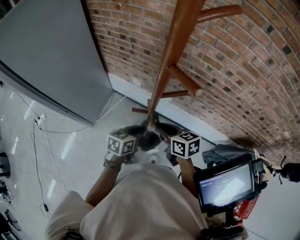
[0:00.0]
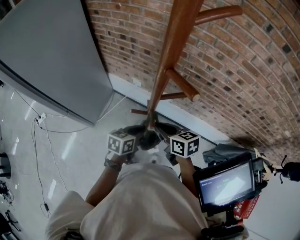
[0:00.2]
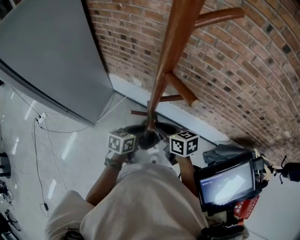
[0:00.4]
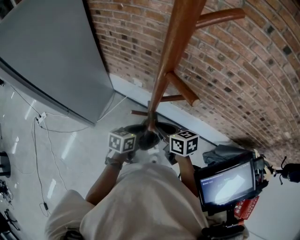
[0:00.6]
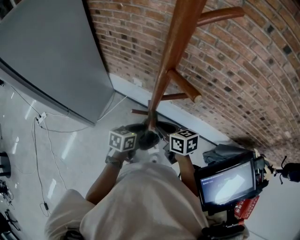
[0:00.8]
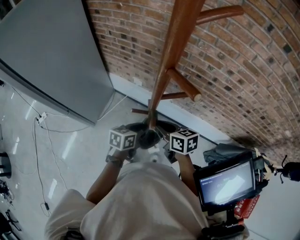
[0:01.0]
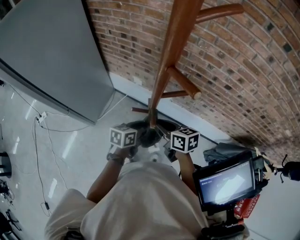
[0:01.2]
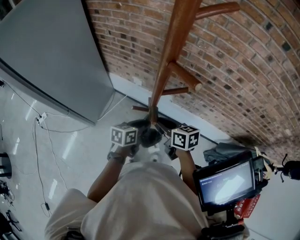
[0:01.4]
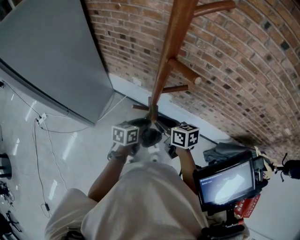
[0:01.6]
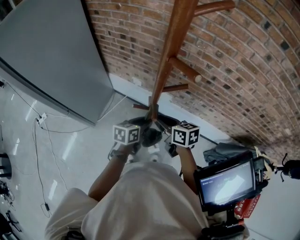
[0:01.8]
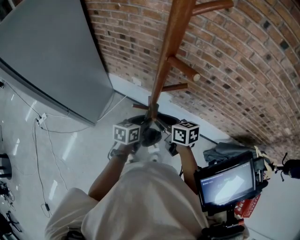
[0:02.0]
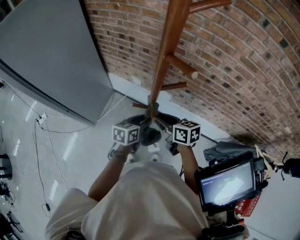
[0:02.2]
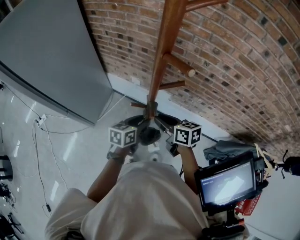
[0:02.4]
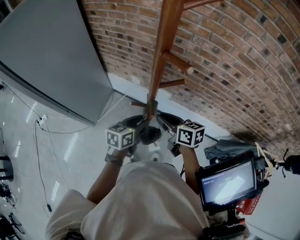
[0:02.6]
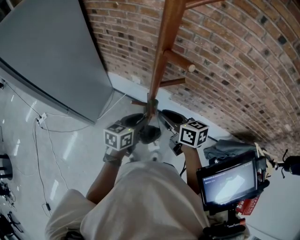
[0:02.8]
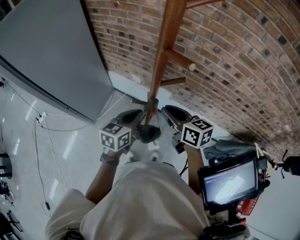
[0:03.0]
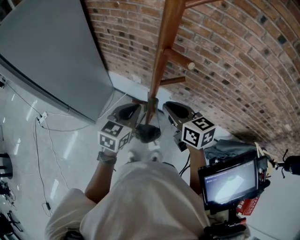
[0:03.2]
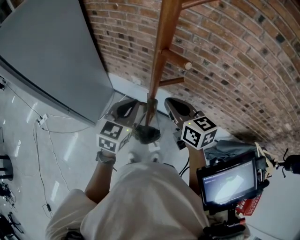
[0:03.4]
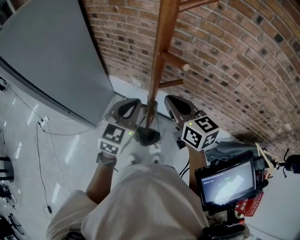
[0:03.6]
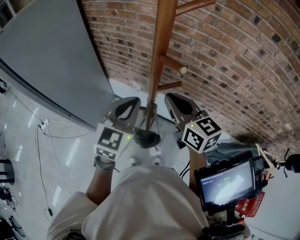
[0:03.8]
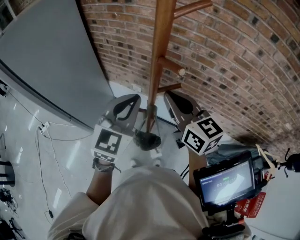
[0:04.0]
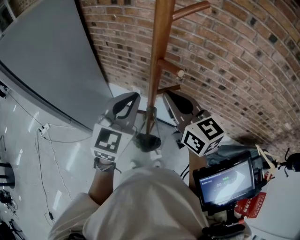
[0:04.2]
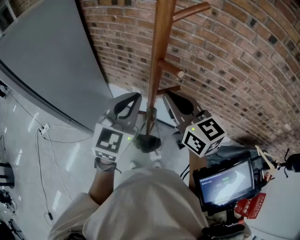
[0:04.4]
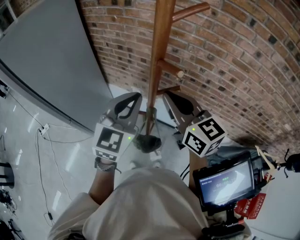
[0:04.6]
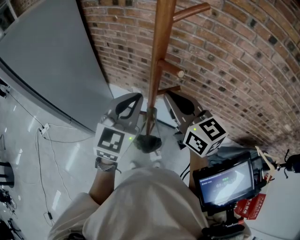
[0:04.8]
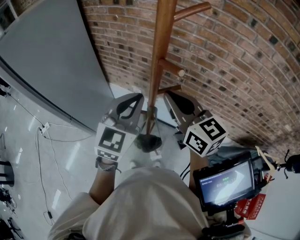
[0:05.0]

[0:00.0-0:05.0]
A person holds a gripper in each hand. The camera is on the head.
0:00.0 to 0:01.6: There are only small adjustments of the grippers.
0:01.6 to 0:03.4: The two grippers go roughly 15 cm upward. The right gripper rotates approximately 20 degrees, while the left gripper changes its angle by roughly 40 degrees.
0:03.4 to 0:05.0: Both grippers move upward, approximately 10 cm.

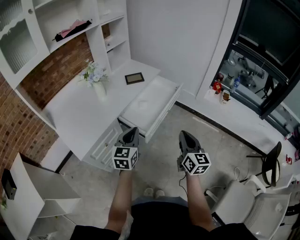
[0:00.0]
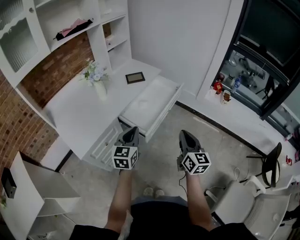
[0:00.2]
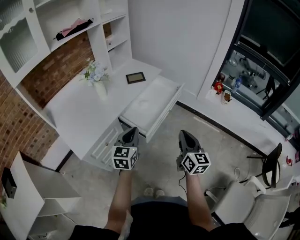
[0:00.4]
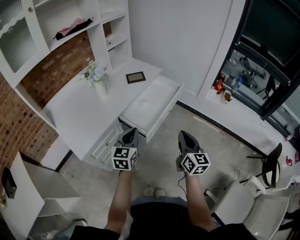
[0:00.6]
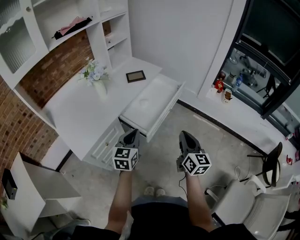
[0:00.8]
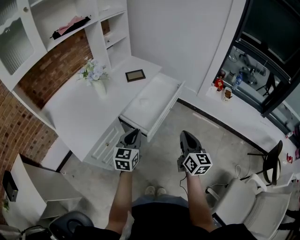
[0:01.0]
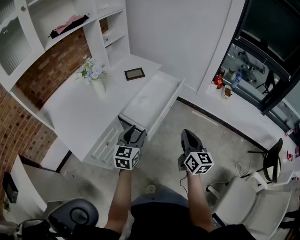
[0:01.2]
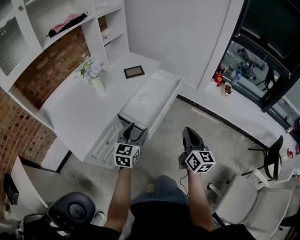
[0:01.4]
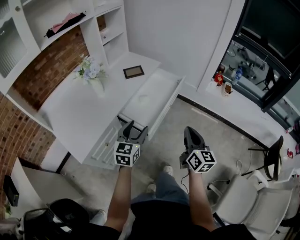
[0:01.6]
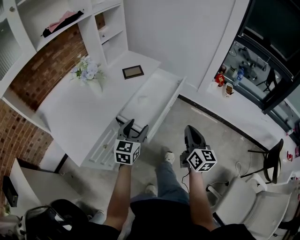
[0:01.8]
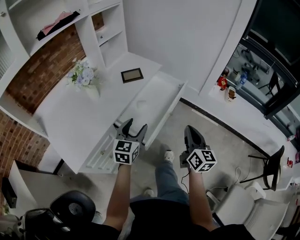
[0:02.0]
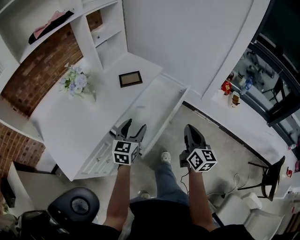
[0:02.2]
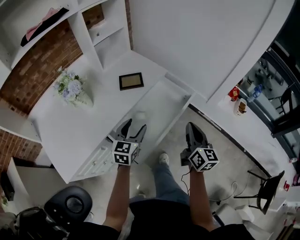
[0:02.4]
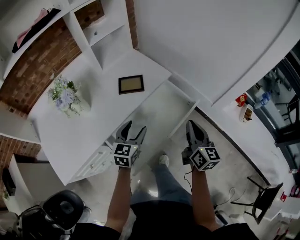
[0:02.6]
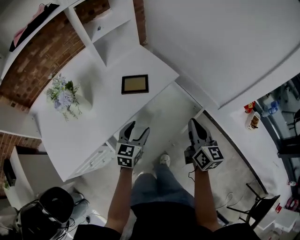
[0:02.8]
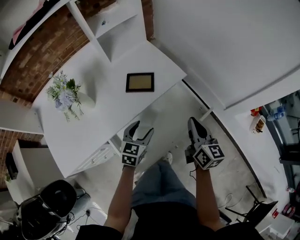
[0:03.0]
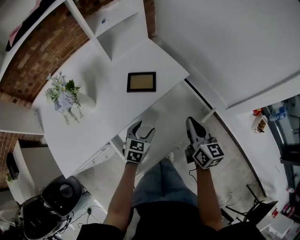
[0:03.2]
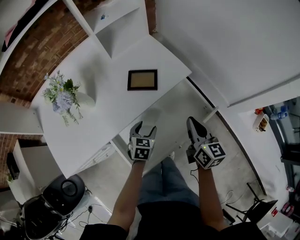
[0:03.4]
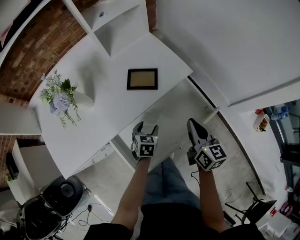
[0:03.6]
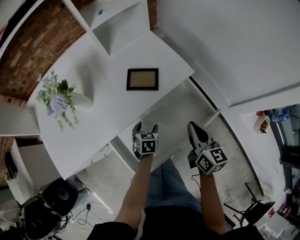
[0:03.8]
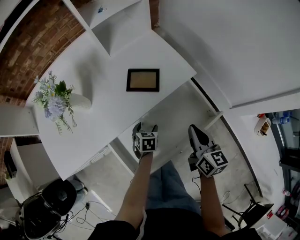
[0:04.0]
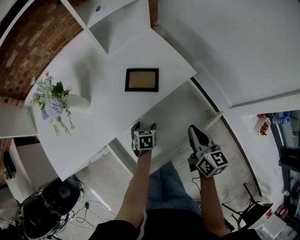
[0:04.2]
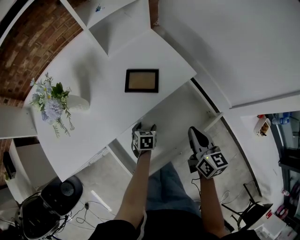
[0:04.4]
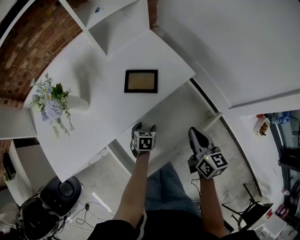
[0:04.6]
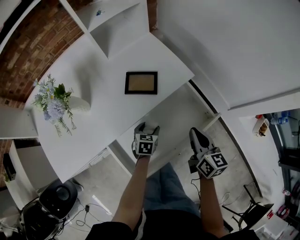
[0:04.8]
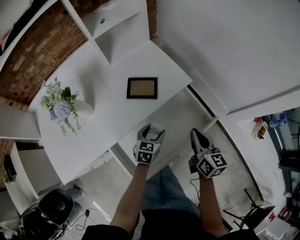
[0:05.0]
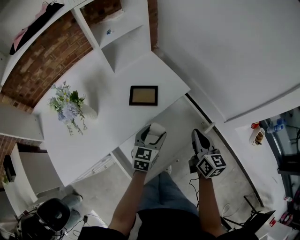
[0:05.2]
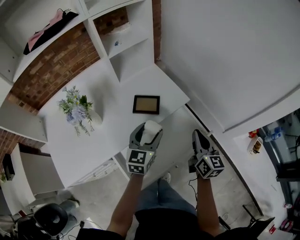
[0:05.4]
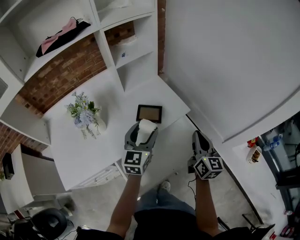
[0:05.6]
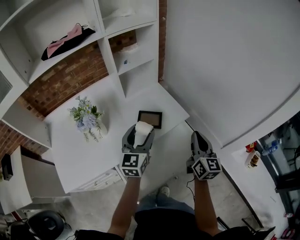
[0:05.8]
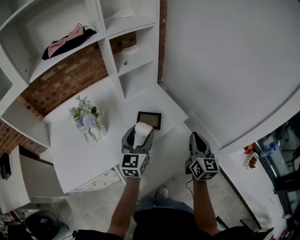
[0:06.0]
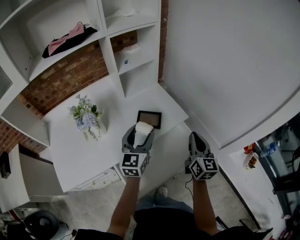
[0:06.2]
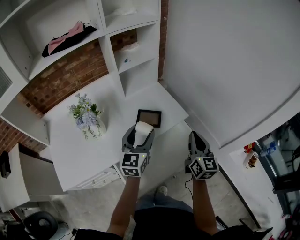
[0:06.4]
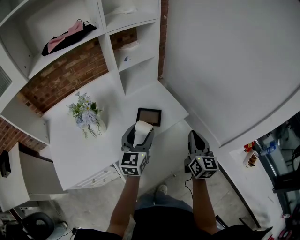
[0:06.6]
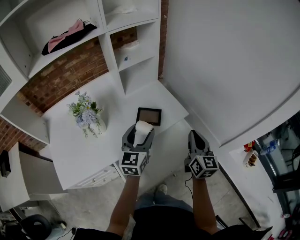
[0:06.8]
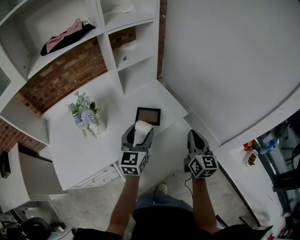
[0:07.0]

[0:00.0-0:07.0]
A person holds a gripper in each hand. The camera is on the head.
0:00.0 to 0:01.4: The left gripper opens.
0:01.4 to 0:02.8: Both grippers move forward, approximately 40 cm. The right gripper turns by roughly 20 degrees. Meanwhile the left gripper changes its angle by some 20 degrees.
0:02.8 to 0:04.2: The left gripper travels downward by some 20 cm, and points its fingers approximately 30 degrees further downward, while the right gripper shifts about 10 cm downward and forward.
0:04.2 to 0:05.6: The left gripper shifts some 35 cm upward, and tips its fingers upward by roughly 50 degrees, while the right gripper goes approximately 15 cm upward, and changes its angle by some 20 degrees.
0:05.6 to 0:07.0: There are only small adjustments of the grippers.

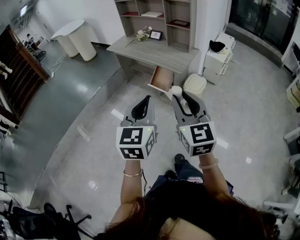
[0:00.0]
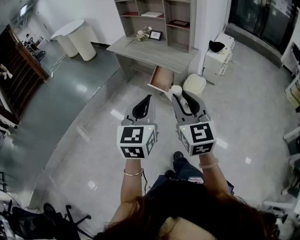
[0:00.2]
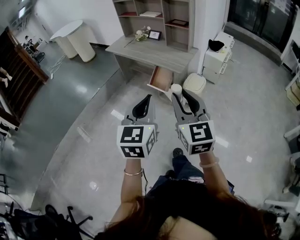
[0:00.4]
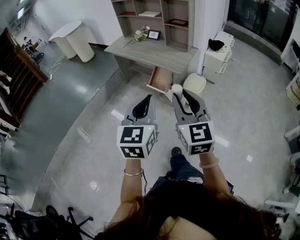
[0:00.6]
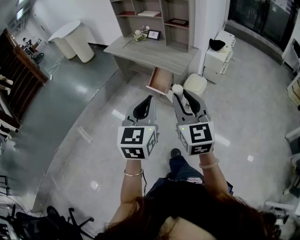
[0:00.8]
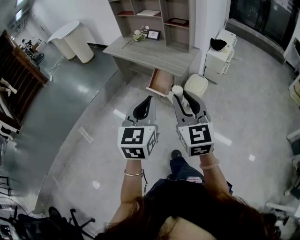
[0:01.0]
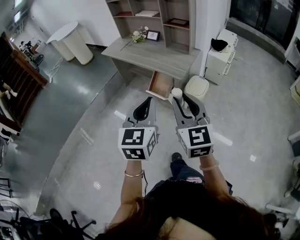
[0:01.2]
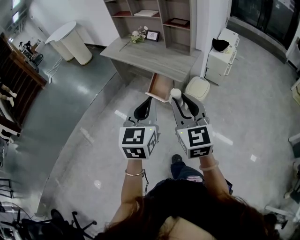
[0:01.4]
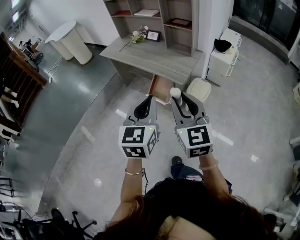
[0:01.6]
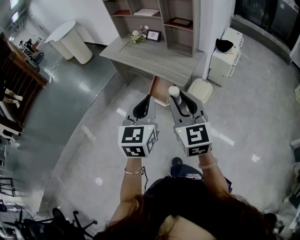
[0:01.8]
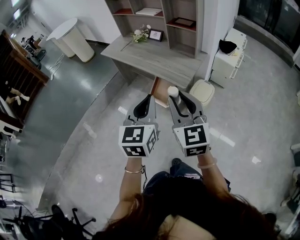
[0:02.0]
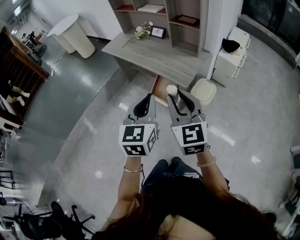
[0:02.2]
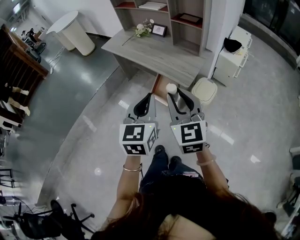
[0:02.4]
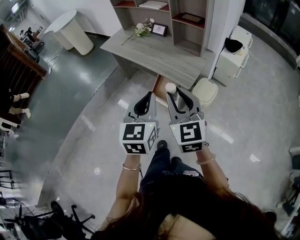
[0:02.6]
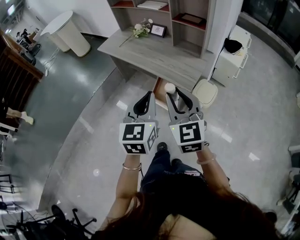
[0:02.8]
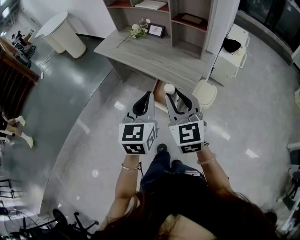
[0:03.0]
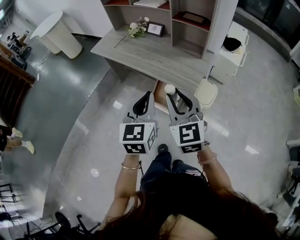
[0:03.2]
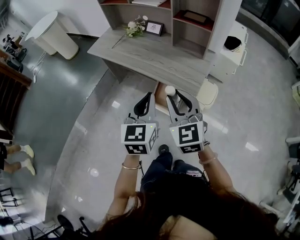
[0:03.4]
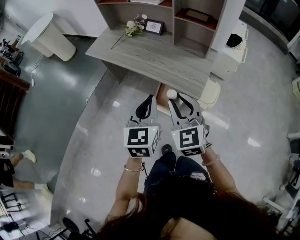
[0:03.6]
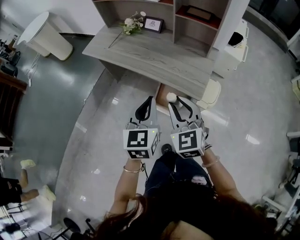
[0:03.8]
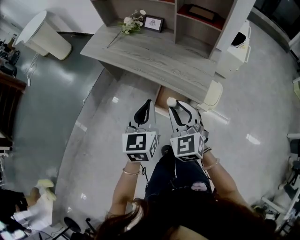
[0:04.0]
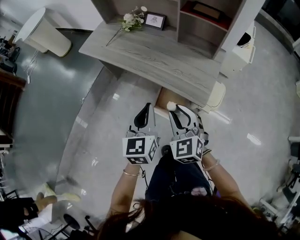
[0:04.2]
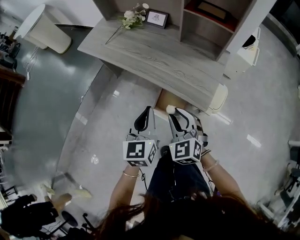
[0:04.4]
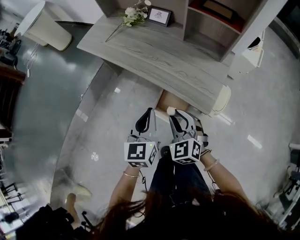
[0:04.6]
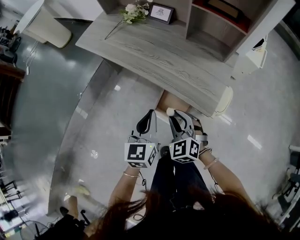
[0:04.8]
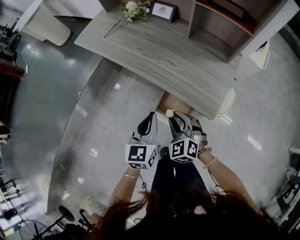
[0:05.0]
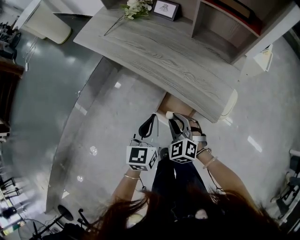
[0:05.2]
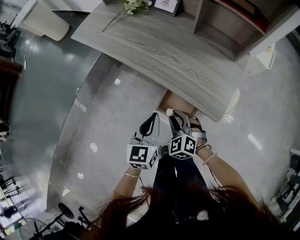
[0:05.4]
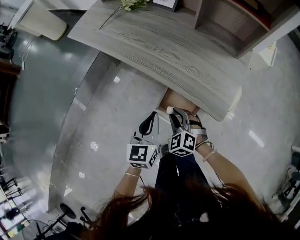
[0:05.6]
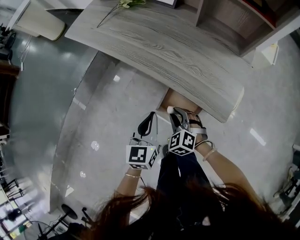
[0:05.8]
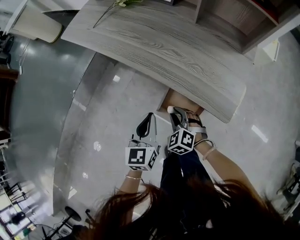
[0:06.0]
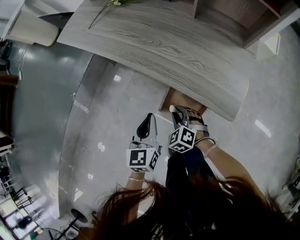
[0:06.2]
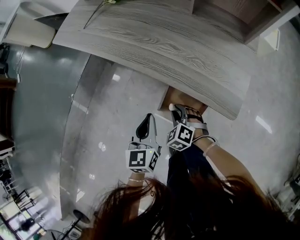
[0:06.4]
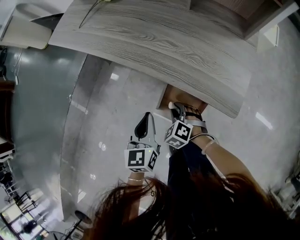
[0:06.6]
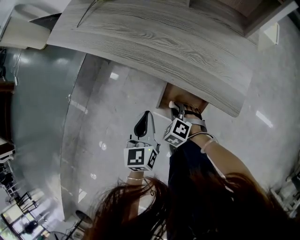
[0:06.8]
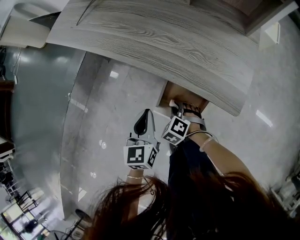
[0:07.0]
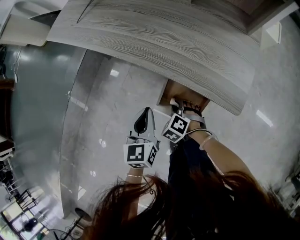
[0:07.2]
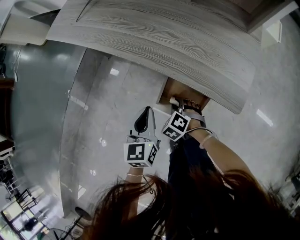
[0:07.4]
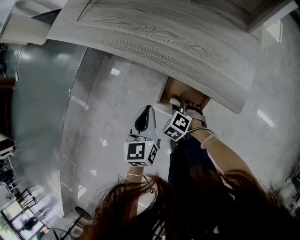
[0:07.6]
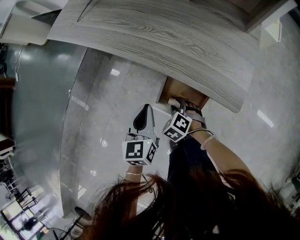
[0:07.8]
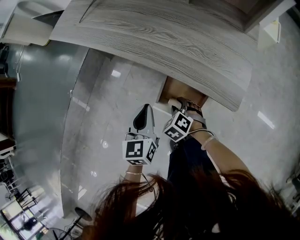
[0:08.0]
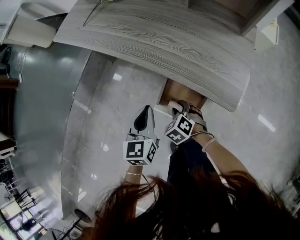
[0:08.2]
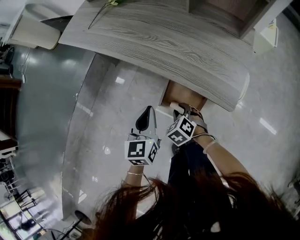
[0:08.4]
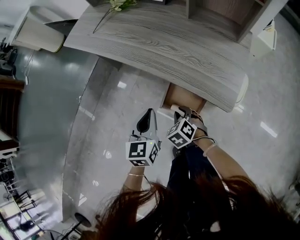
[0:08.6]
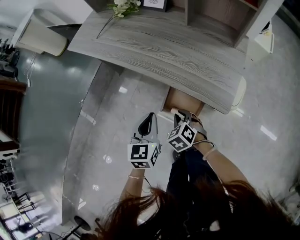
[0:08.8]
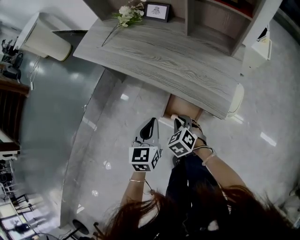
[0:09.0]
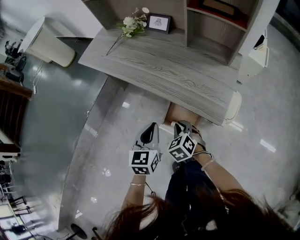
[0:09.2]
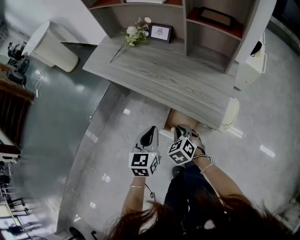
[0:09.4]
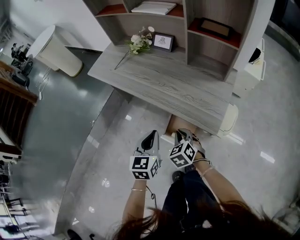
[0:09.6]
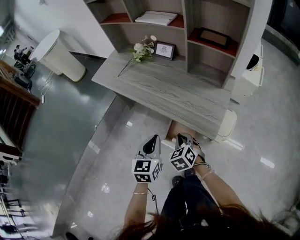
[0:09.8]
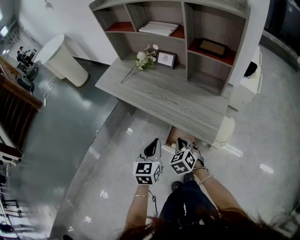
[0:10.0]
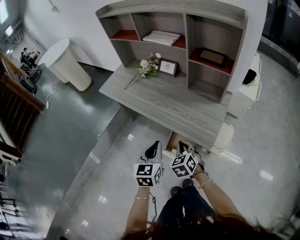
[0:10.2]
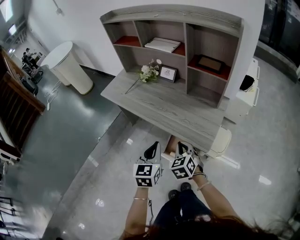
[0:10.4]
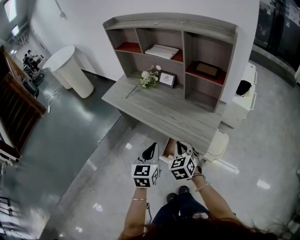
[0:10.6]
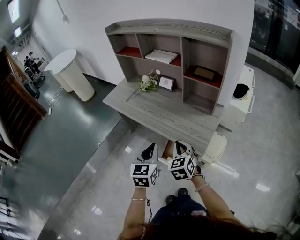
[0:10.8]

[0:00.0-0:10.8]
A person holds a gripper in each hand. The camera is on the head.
0:00.0 to 0:01.6: The grippers both shift forward by about 20 cm.
0:01.6 to 0:03.0: The two grippers go roughly 20 cm forward.
0:03.0 to 0:04.6: Both grippers travel together downward and forward, approximately 30 cm. The right gripper turns by about 30 degrees.
0:04.6 to 0:06.2: Both grippers travel together downward, some 25 cm. The right gripper turns by some 20 degrees.
0:06.2 to 0:07.8: The right gripper travels downward by some 5 cm.
0:07.8 to 0:09.2: The grippers both shift upward by approximately 15 cm. The right gripper closes.
0:09.2 to 0:10.8: Both grippers move upward, roughly 25 cm. The right gripper rotates approximately 20 degrees.

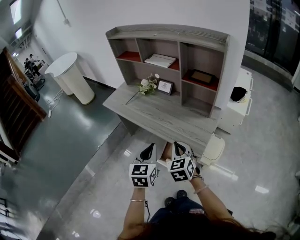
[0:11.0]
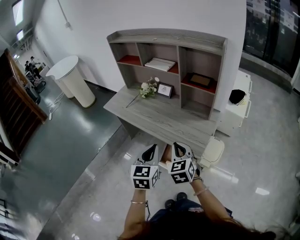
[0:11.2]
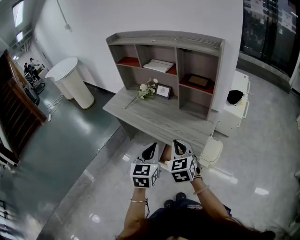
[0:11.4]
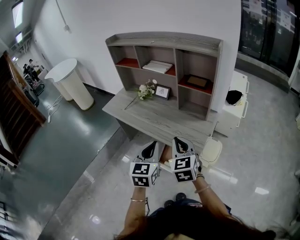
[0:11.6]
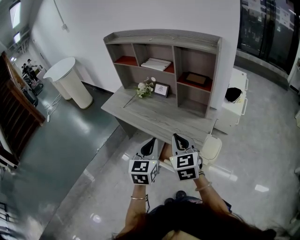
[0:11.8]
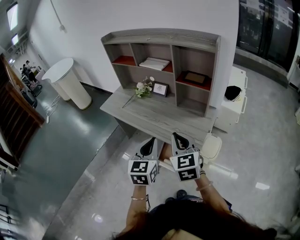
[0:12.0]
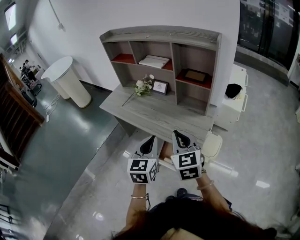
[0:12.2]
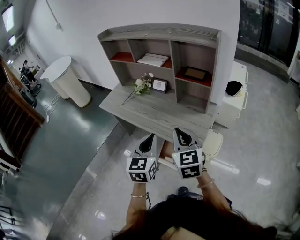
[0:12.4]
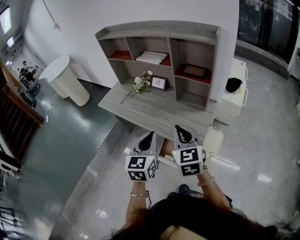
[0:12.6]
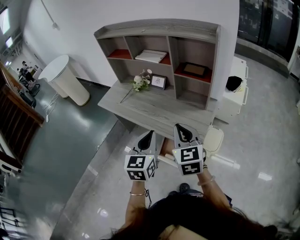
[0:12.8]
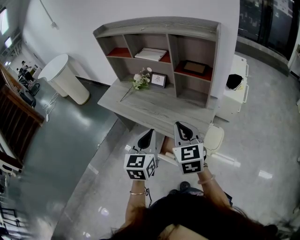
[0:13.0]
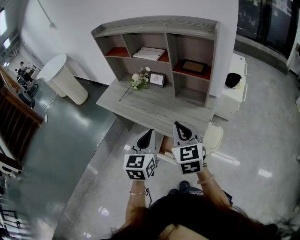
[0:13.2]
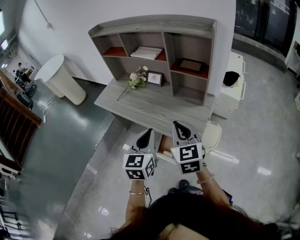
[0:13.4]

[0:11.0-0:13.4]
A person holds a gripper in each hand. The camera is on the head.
0:11.0 to 0:12.2: The right gripper moves upward, about 10 cm; the left gripper goes some 5 cm upward.
0:12.2 to 0:13.4: The grippers stay close to where they were, moving slightly.
